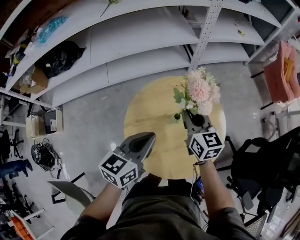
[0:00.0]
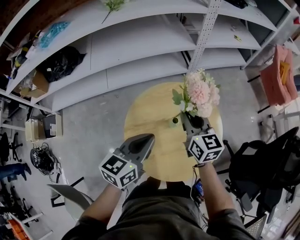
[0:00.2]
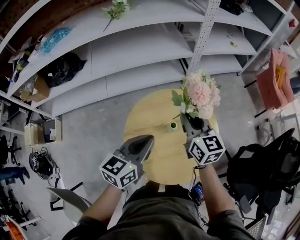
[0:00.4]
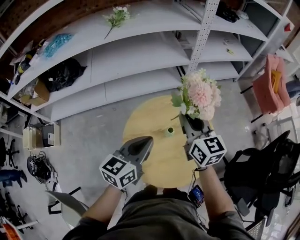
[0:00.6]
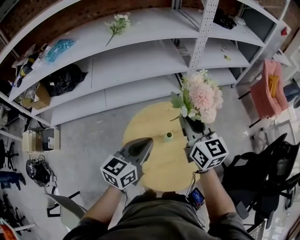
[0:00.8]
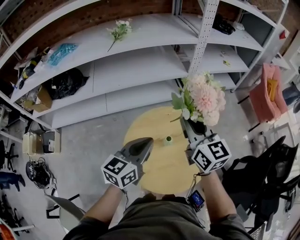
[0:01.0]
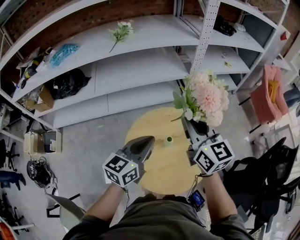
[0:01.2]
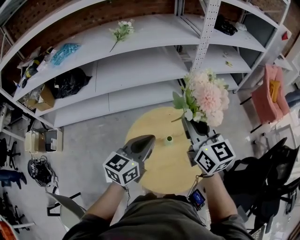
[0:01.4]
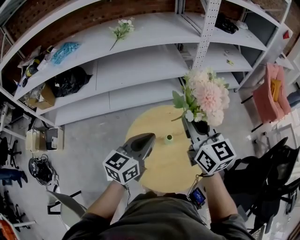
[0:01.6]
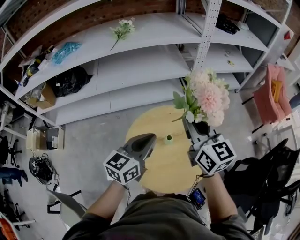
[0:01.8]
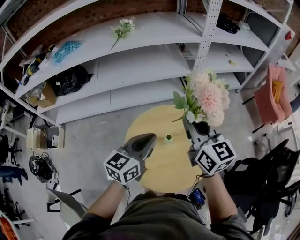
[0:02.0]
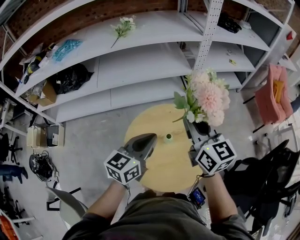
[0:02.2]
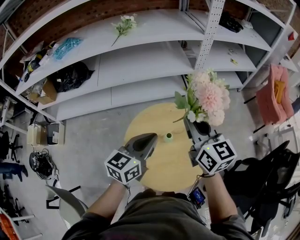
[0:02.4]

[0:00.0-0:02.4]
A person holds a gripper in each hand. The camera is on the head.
0.0 to 1.2 s: The left gripper is displaced upward by roughly 10 cm. Meanwhile the right gripper moves upward, approximately 20 cm.
1.2 to 2.4 s: The grippers stay close to where they were, moving slightly.

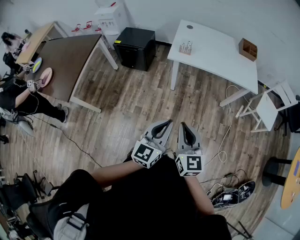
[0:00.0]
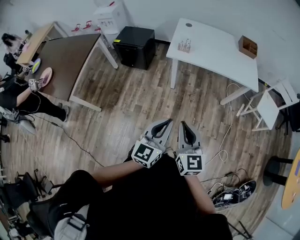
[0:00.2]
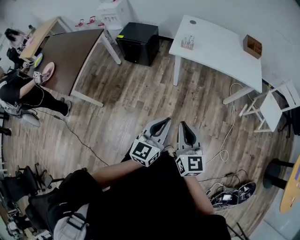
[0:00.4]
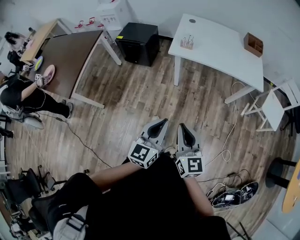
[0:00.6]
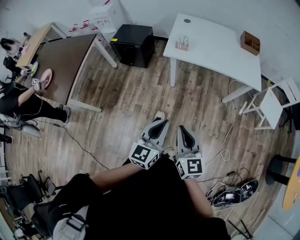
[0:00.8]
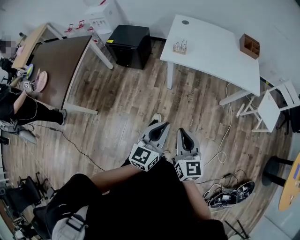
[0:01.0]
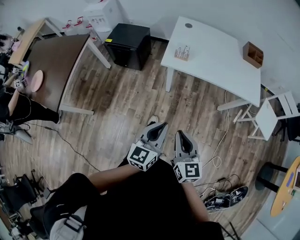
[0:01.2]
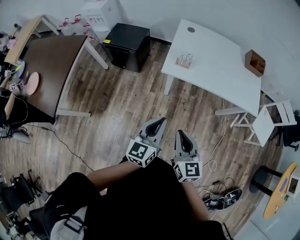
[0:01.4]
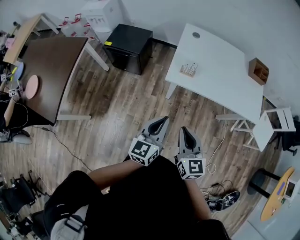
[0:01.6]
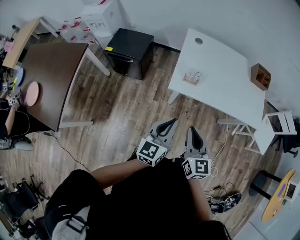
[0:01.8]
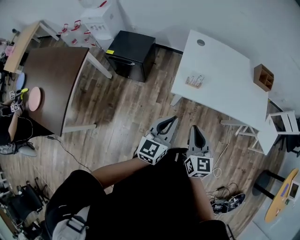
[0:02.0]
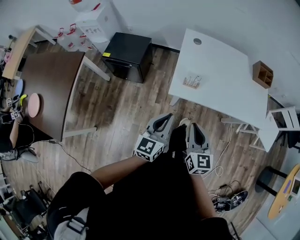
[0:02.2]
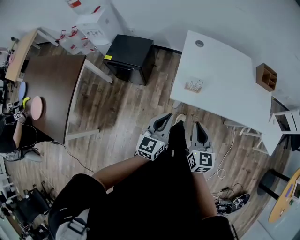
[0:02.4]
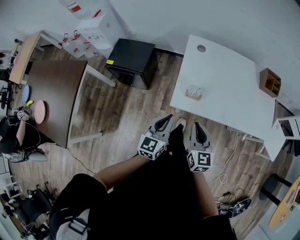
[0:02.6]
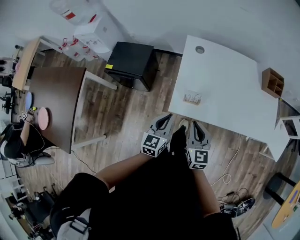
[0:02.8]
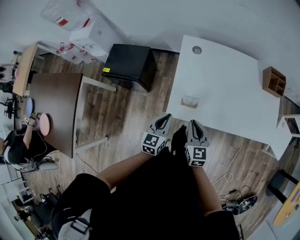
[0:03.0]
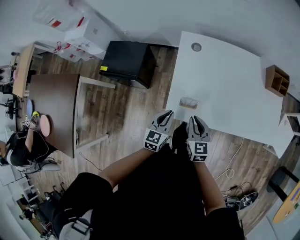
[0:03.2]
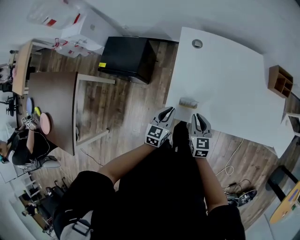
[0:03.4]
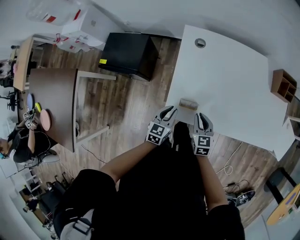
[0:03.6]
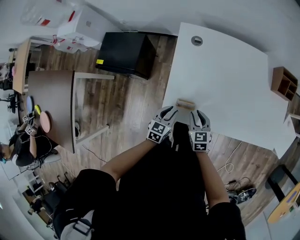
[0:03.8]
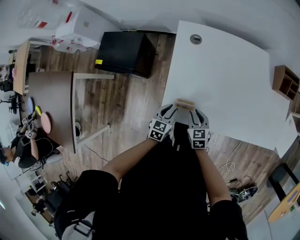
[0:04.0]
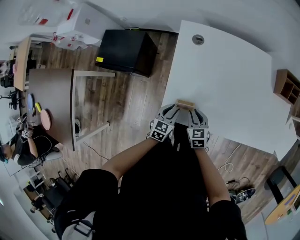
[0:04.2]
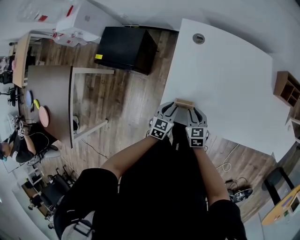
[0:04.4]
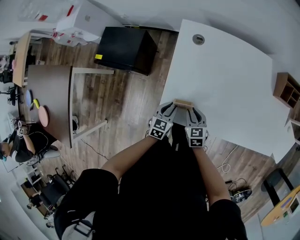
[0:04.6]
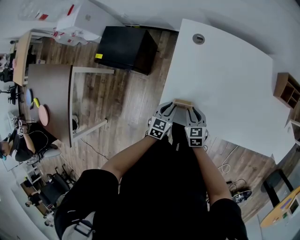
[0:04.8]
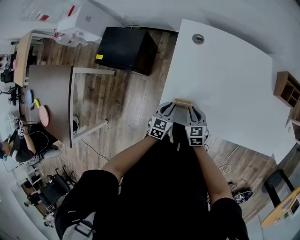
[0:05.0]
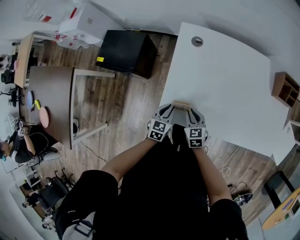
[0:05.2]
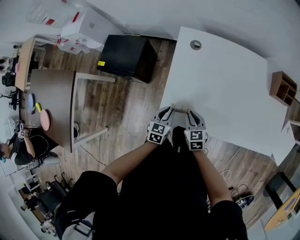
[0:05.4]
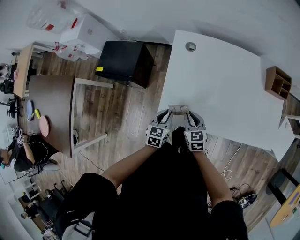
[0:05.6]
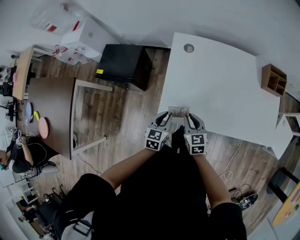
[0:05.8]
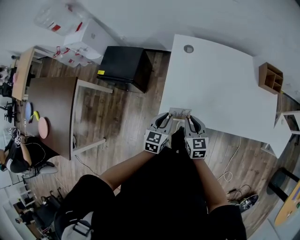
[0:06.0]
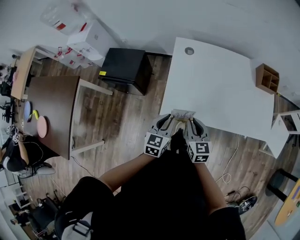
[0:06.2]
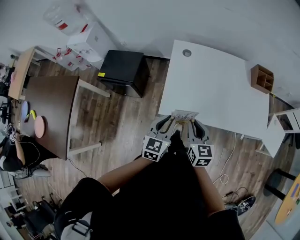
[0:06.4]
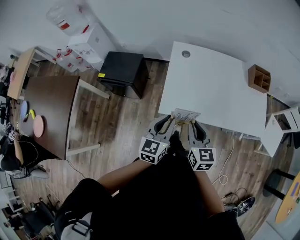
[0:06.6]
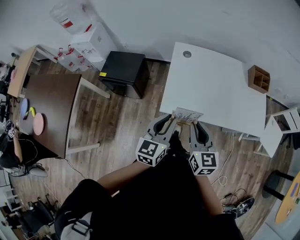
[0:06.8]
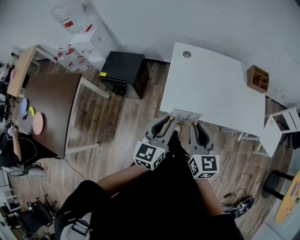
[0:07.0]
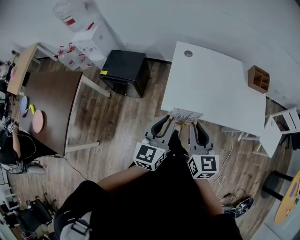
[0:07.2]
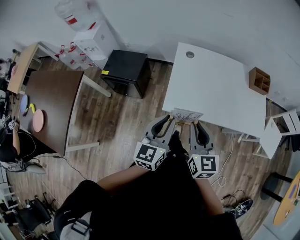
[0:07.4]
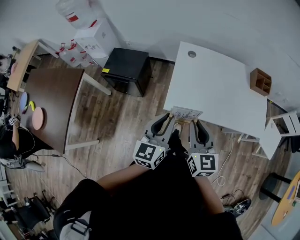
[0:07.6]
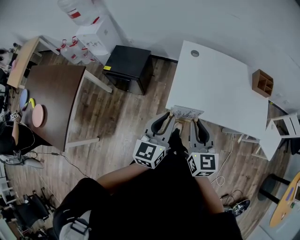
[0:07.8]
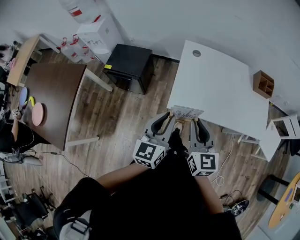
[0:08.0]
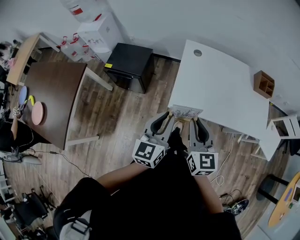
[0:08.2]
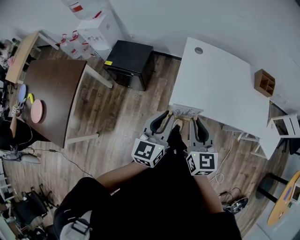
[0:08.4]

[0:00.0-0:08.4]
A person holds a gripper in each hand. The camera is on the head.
0.0 to 1.4 s: The two grippers go approximately 20 cm forward.
1.4 to 2.8 s: The two grippers go roughly 30 cm forward.
2.8 to 4.2 s: Both grippers travel together downward and forward, roughly 25 cm. The right gripper swivels approximately 30 degrees. Meanwhile the left gripper changes its angle by about 20 degrees, and opens.
4.2 to 5.6 s: The grippers both shift upward by roughly 5 cm.
5.6 to 7.0 s: Both grippers travel together upward and backward, some 30 cm. The left gripper rotates about 30 degrees, while the right gripper swivels roughly 20 degrees.
7.0 to 8.4 s: Both grippers move to the left, roughly 10 cm.

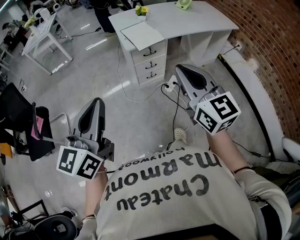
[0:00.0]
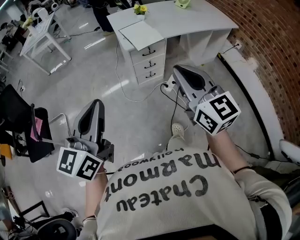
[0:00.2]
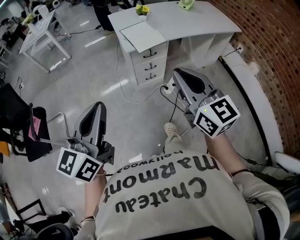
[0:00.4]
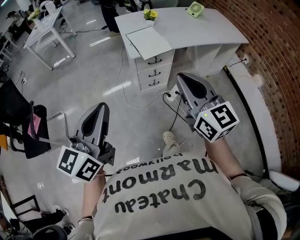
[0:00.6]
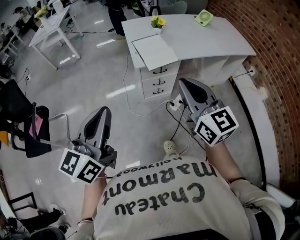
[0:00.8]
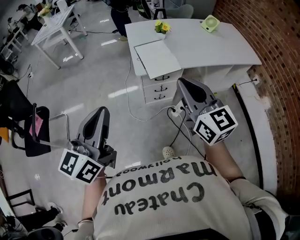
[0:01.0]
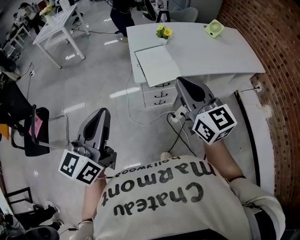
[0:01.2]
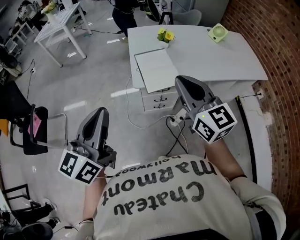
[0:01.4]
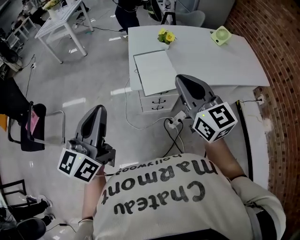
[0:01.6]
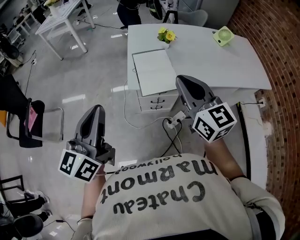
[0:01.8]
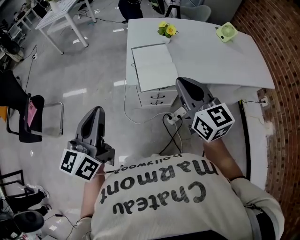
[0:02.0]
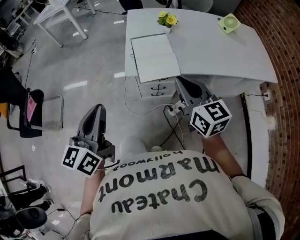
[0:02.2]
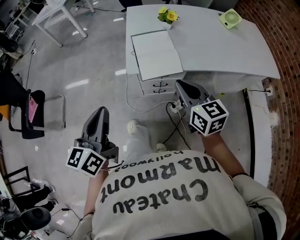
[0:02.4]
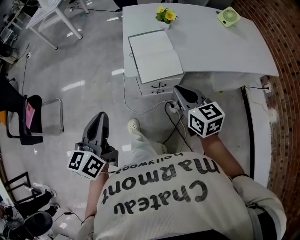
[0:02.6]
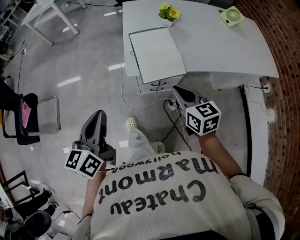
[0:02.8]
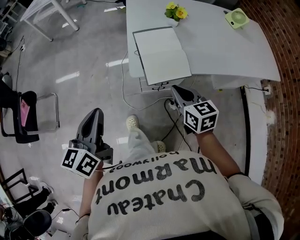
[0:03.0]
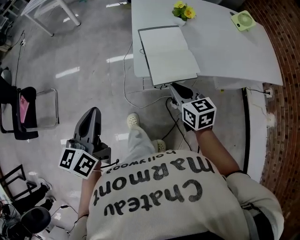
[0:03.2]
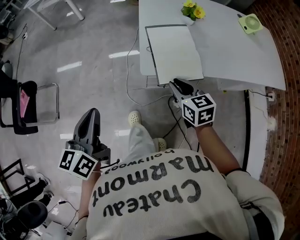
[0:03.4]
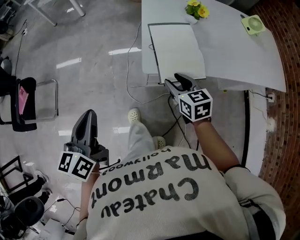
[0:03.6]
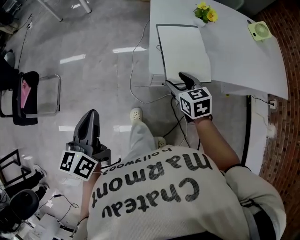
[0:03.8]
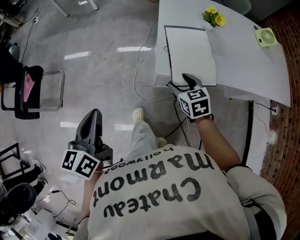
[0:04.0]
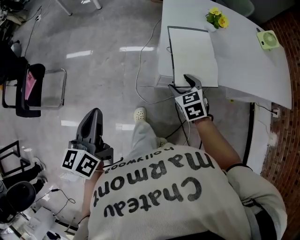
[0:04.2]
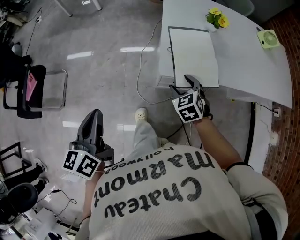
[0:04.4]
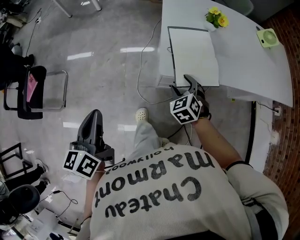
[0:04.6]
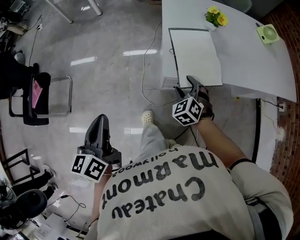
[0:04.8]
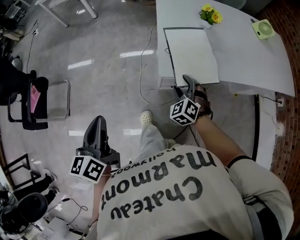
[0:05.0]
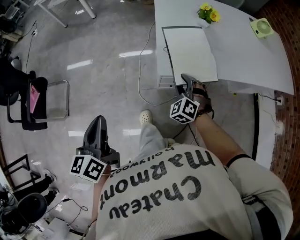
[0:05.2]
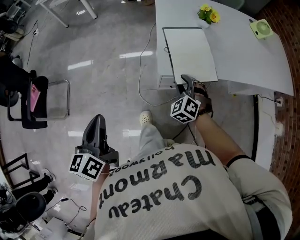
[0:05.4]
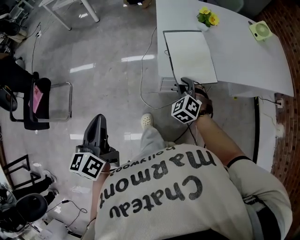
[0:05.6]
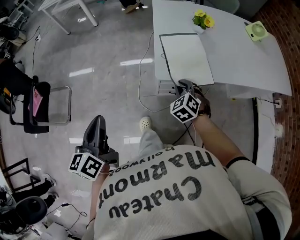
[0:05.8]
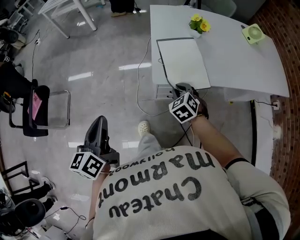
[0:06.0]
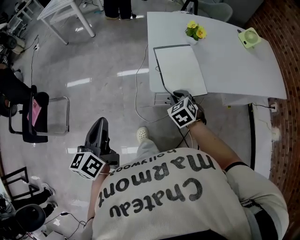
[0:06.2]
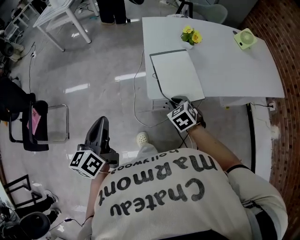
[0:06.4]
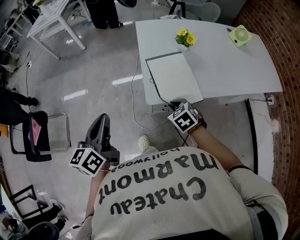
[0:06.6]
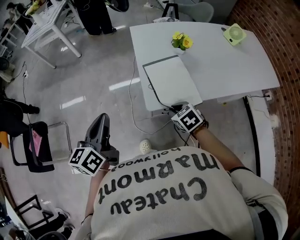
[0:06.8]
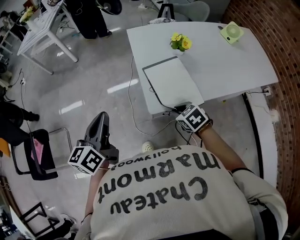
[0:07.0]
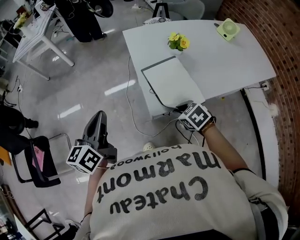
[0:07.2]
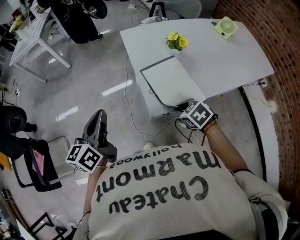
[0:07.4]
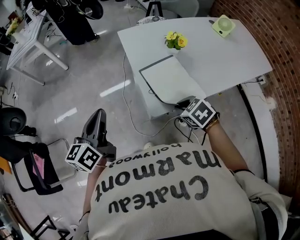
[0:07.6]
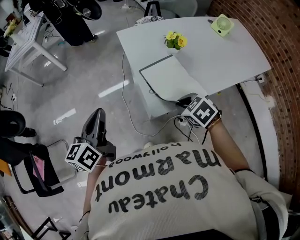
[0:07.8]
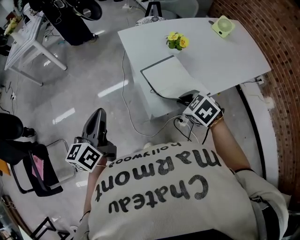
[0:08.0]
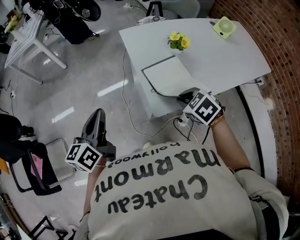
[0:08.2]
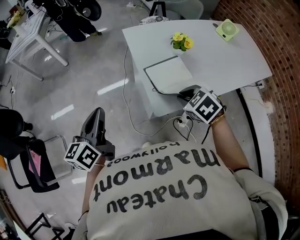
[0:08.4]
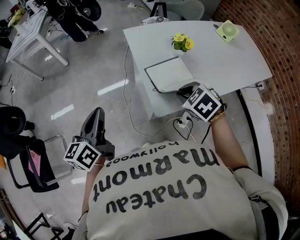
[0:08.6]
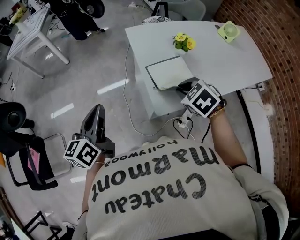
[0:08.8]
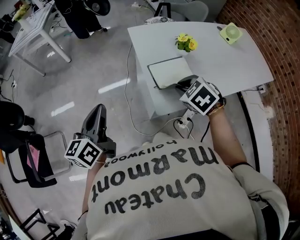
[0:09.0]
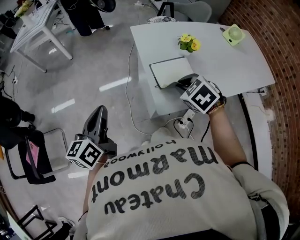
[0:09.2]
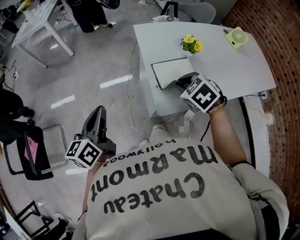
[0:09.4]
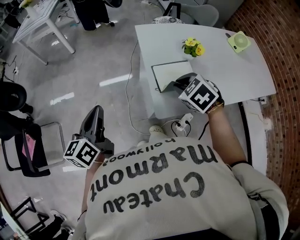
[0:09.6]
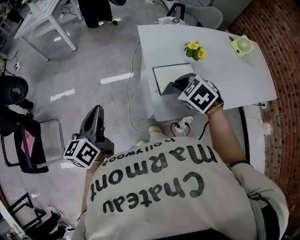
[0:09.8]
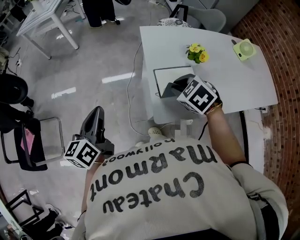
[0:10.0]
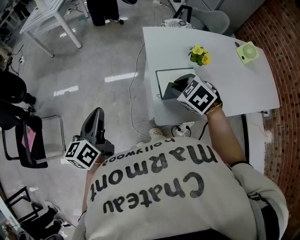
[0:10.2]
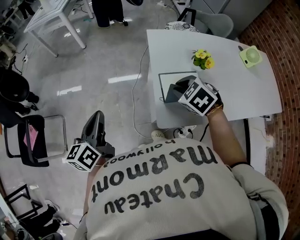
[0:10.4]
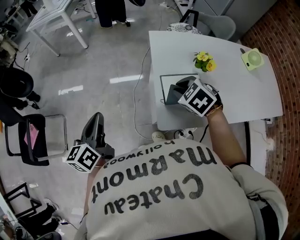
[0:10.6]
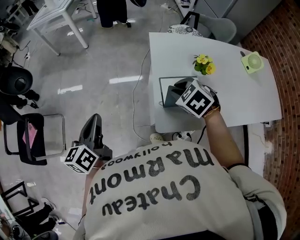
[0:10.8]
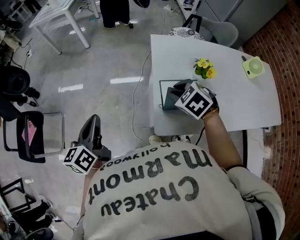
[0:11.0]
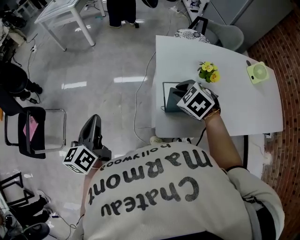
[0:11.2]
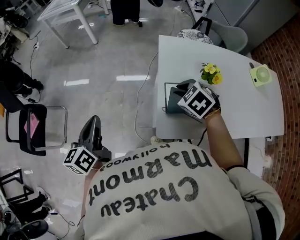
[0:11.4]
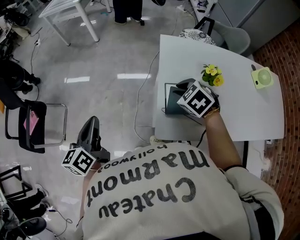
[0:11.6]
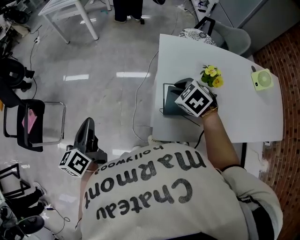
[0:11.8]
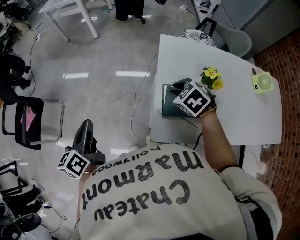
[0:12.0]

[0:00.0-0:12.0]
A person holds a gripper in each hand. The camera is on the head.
0.0 to 1.6 s: The two grippers go some 30 cm forward.
1.6 to 3.0 s: The right gripper heads downward, covering some 25 cm, and changes its angle by roughly 30 degrees. The left gripper is displaced downward and forward by some 15 cm.
3.0 to 4.4 s: The right gripper is displaced downward, to the left and forward by about 15 cm, swivels some 40 degrees, and opens; the left gripper heads to the left, covering roughly 10 cm.
4.4 to 6.0 s: The right gripper closes its fingers.
6.0 to 7.6 s: The left gripper shifts roughly 25 cm forward, and rotates some 20 degrees; the right gripper heads upward, covering approximately 5 cm, and changes its angle by approximately 30 degrees.
7.6 to 9.0 s: The right gripper heads forward and upward, covering some 10 cm.
9.0 to 10.4 s: The right gripper travels forward by some 10 cm.
10.4 to 12.0 s: The right gripper travels forward by roughly 5 cm.

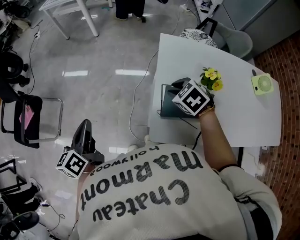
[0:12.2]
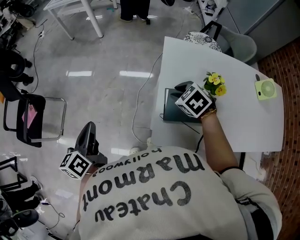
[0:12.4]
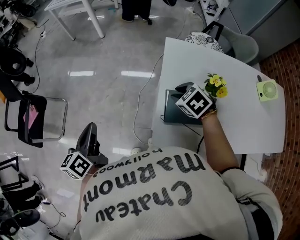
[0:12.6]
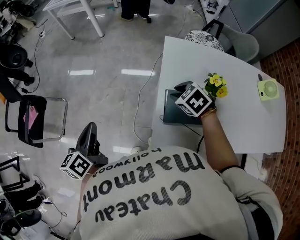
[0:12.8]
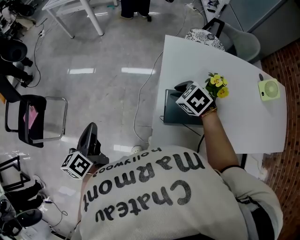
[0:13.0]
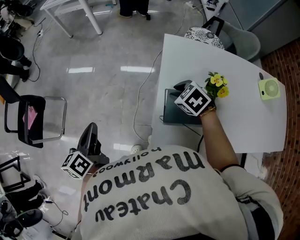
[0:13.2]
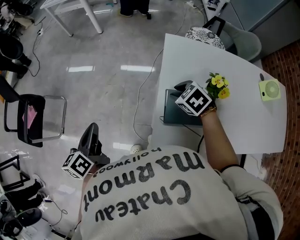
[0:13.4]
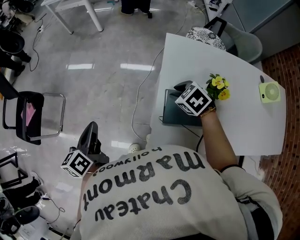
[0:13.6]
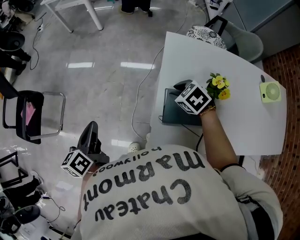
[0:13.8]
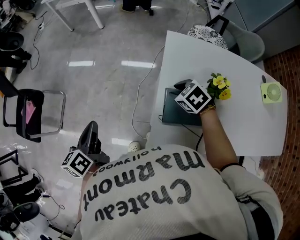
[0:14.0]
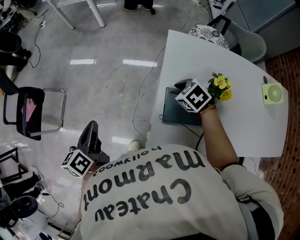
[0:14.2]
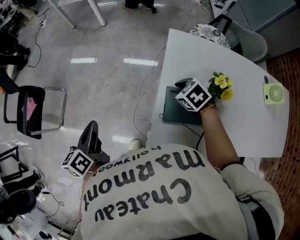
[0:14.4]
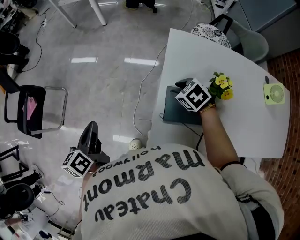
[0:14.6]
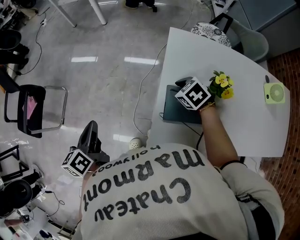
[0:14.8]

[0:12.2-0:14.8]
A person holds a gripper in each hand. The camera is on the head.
12.2 to 13.4 s: The grippers move only a little.
13.4 to 14.8 s: The grippers move only a little.
